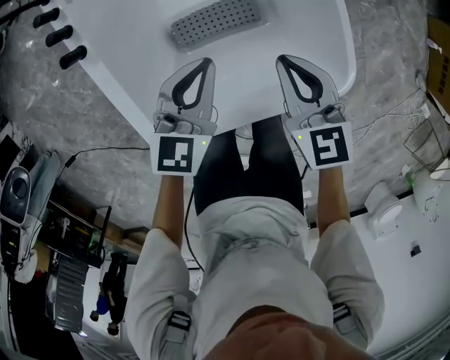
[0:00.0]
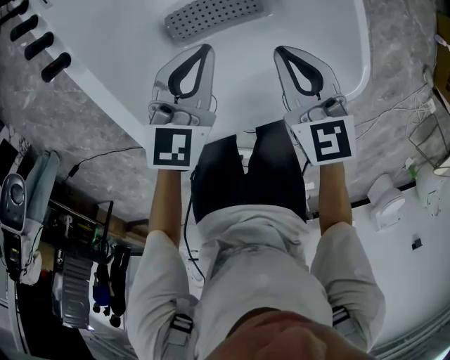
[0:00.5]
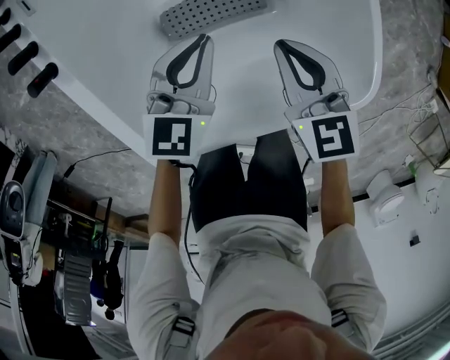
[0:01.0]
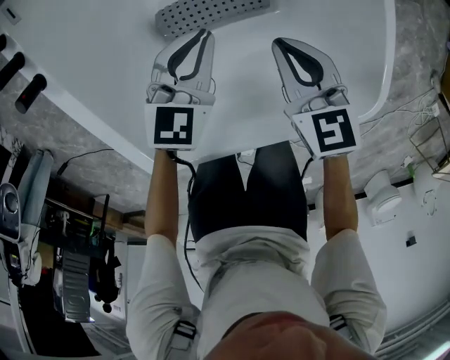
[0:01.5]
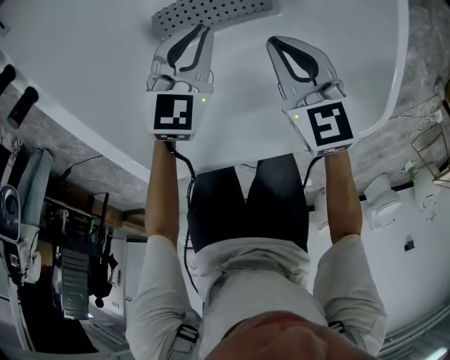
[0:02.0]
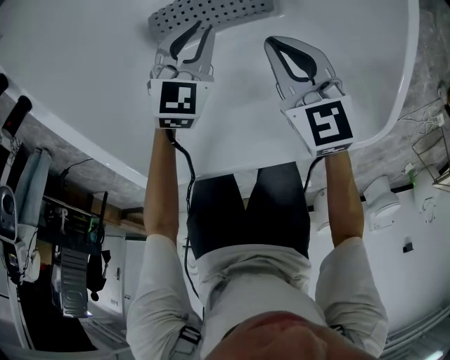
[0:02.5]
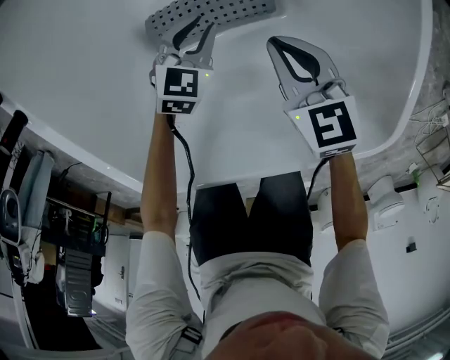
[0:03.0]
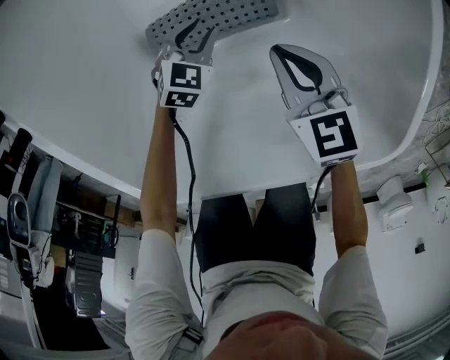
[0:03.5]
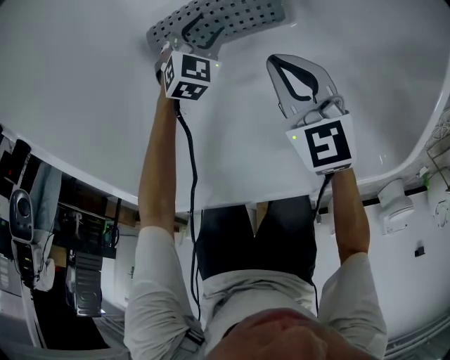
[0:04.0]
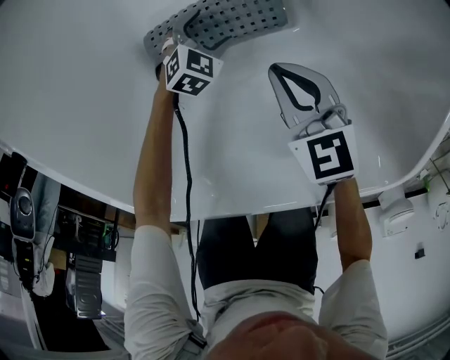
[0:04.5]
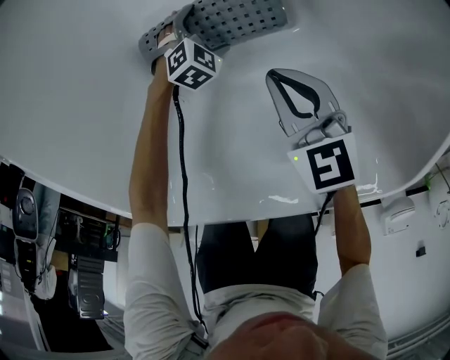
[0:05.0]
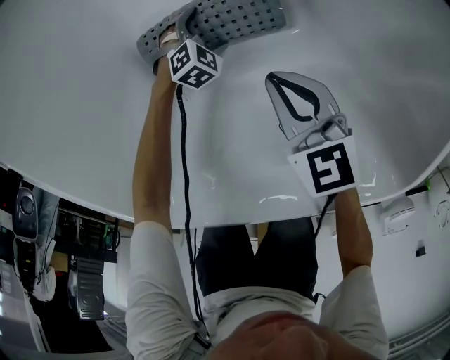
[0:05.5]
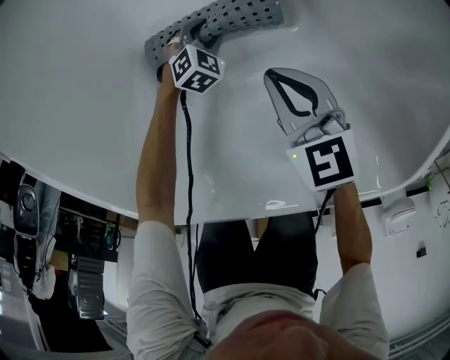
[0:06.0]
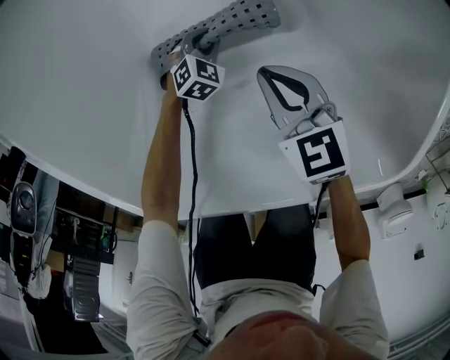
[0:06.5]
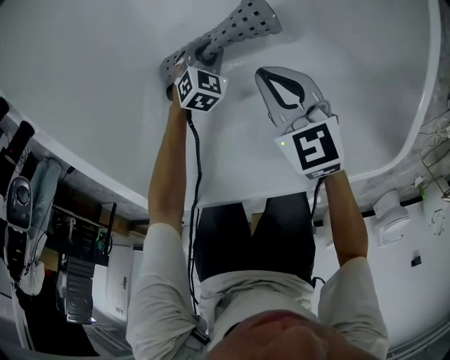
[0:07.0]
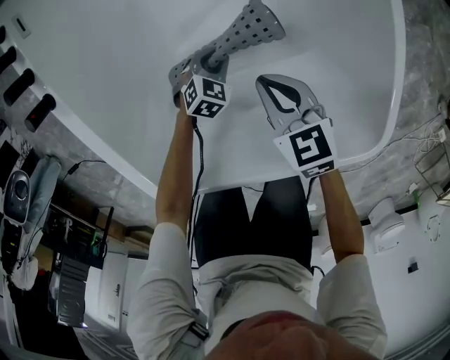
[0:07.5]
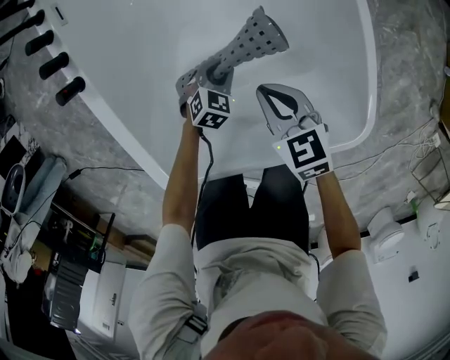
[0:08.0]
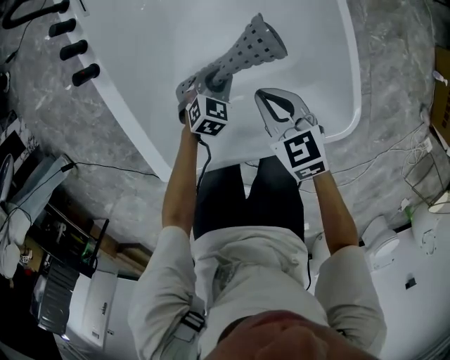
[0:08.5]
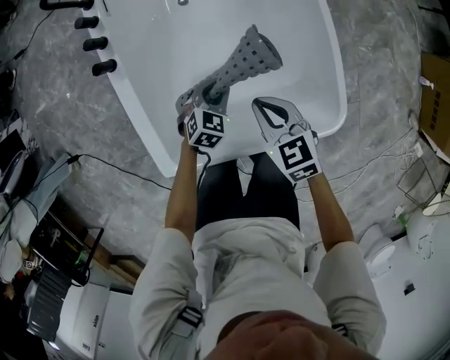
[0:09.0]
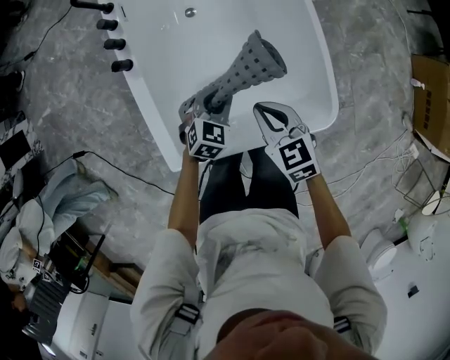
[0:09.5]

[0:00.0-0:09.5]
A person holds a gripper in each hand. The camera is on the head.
0:00.0 to 0:02.0: The two grippers go approximately 25 cm downward.
0:02.0 to 0:04.0: The right gripper heads downward, covering roughly 10 cm; the left gripper is displaced downward by some 25 cm, and turns by about 20 degrees.
0:04.0 to 0:05.5: The left gripper goes about 10 cm downward, and opens its fingers.
0:05.5 to 0:07.5: The right gripper heads upward, covering roughly 10 cm, while the left gripper shifts about 20 cm upward, turns by about 20 degrees, and closes its fingers.
0:07.5 to 0:09.5: Both grippers move upward, some 30 cm.

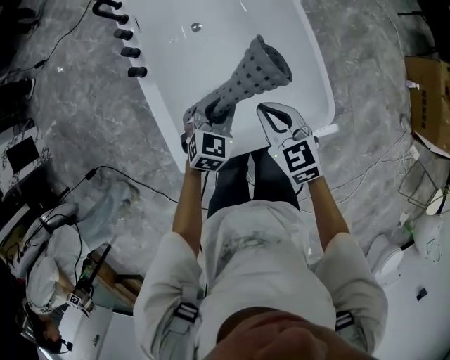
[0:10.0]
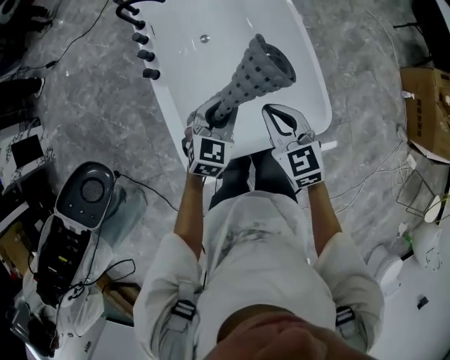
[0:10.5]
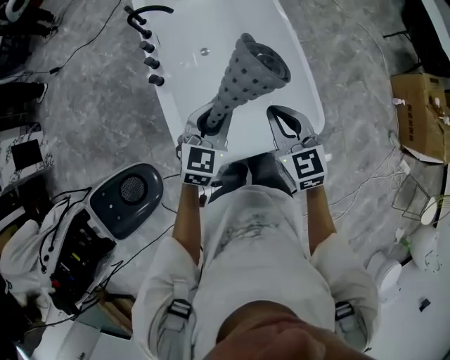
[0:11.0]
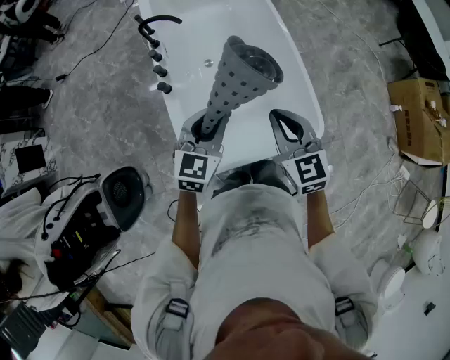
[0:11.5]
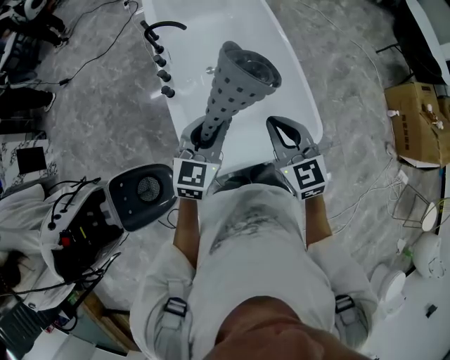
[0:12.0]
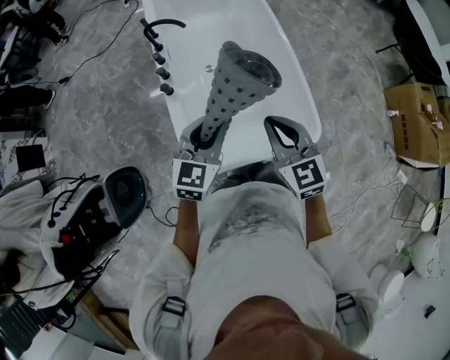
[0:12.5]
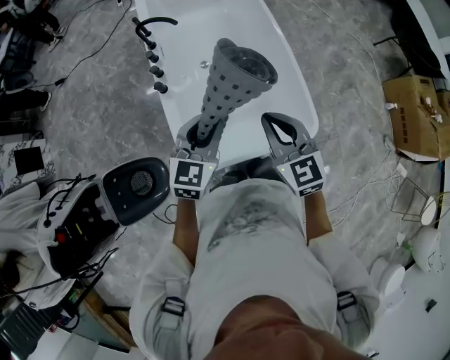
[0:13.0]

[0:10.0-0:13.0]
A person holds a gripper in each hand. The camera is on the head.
0:10.0 to 0:11.5: The two grippers go about 20 cm upward.
0:11.5 to 0:13.0: There are only small adjustments of the grippers.

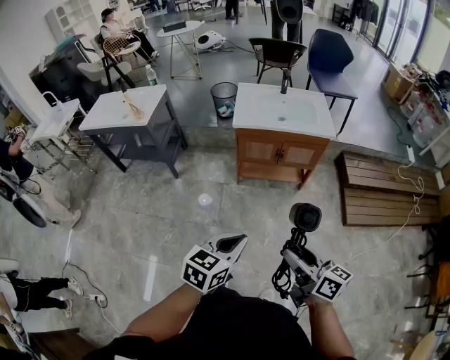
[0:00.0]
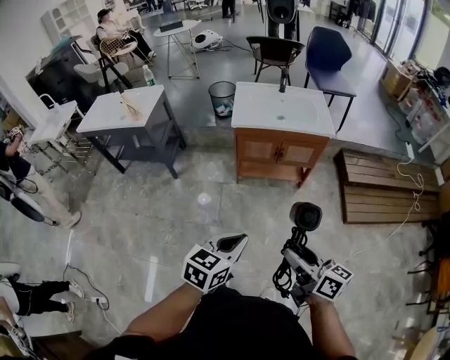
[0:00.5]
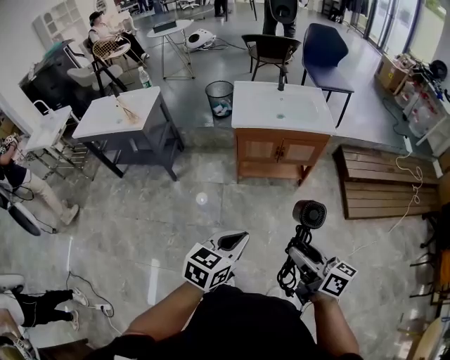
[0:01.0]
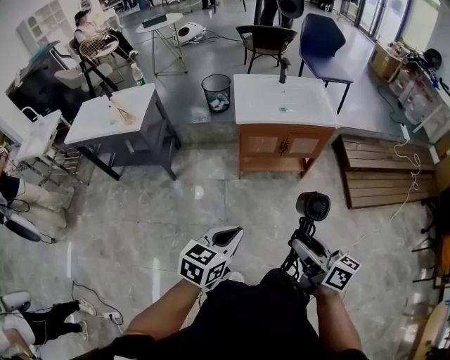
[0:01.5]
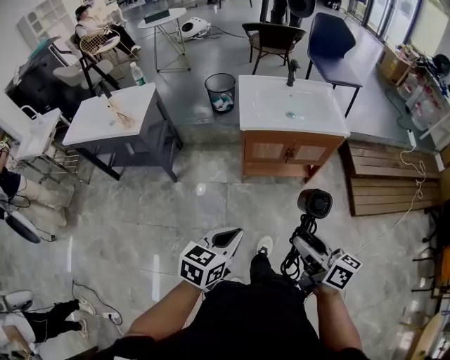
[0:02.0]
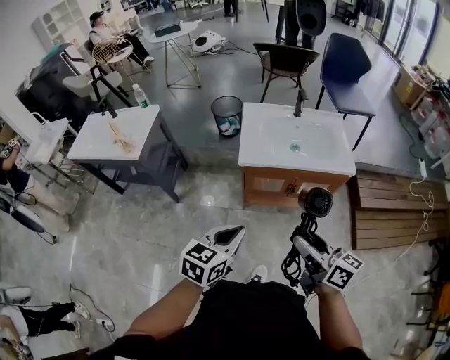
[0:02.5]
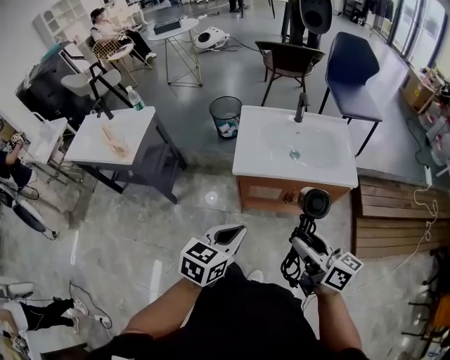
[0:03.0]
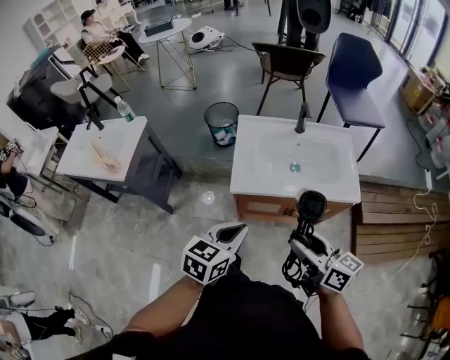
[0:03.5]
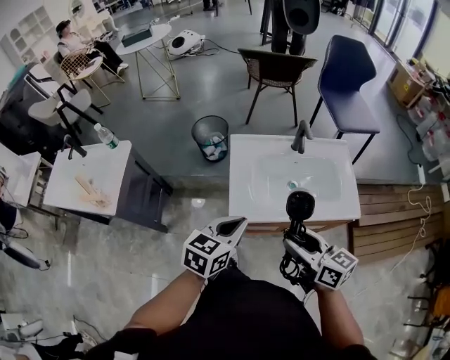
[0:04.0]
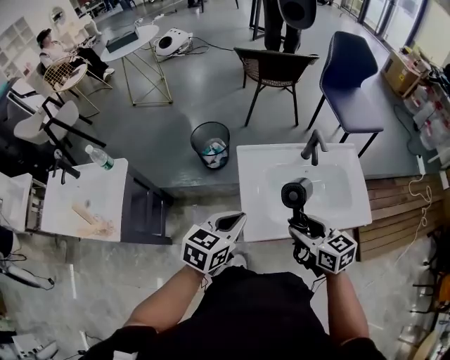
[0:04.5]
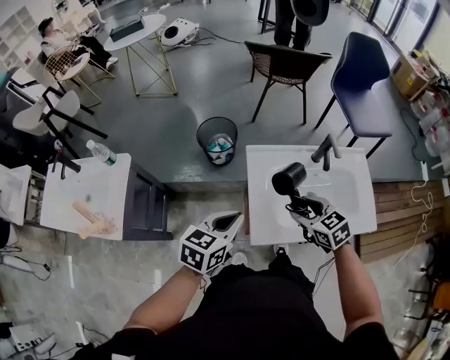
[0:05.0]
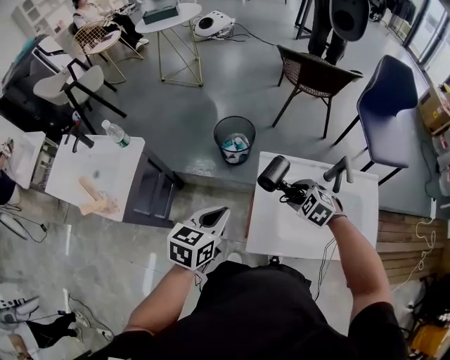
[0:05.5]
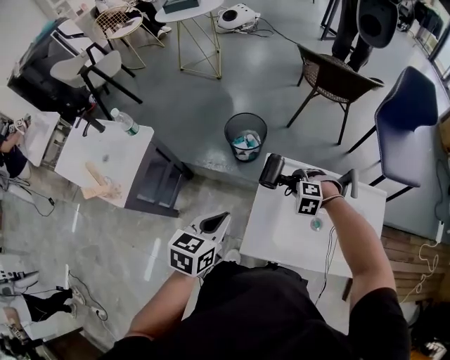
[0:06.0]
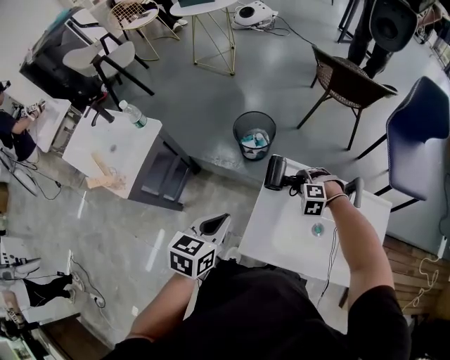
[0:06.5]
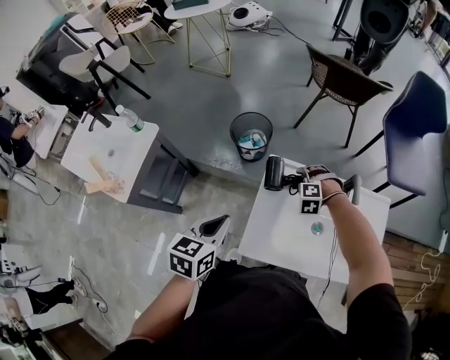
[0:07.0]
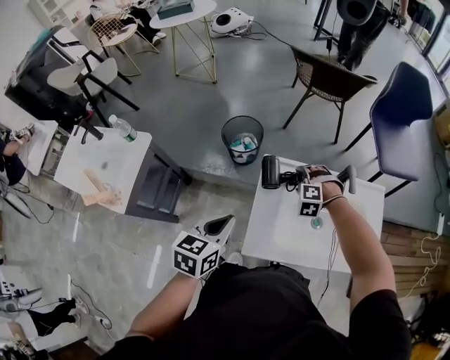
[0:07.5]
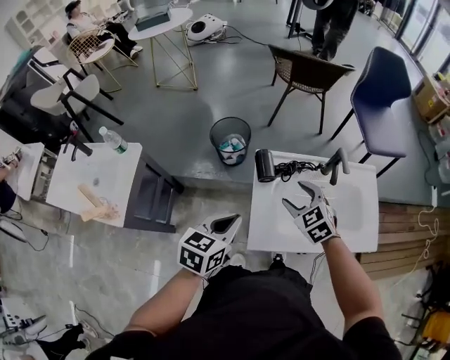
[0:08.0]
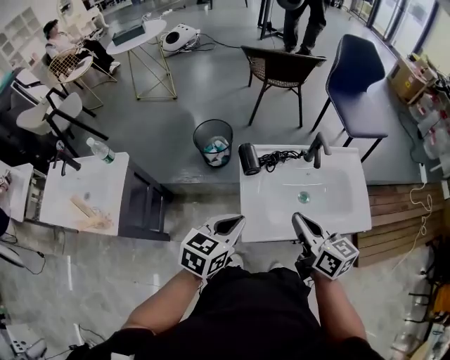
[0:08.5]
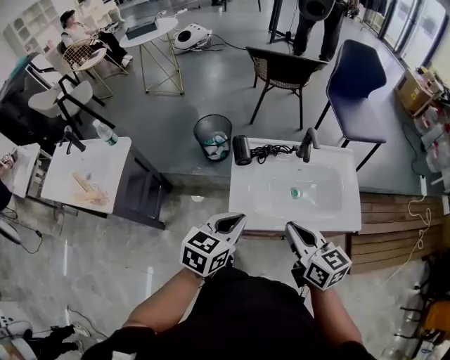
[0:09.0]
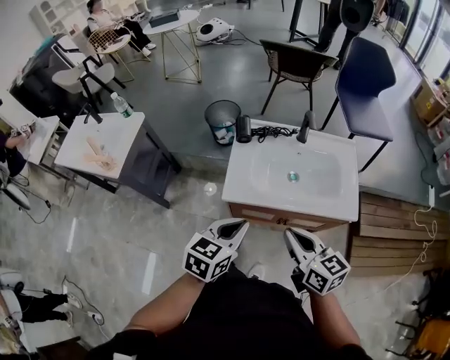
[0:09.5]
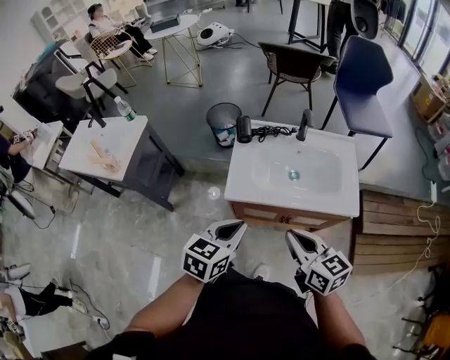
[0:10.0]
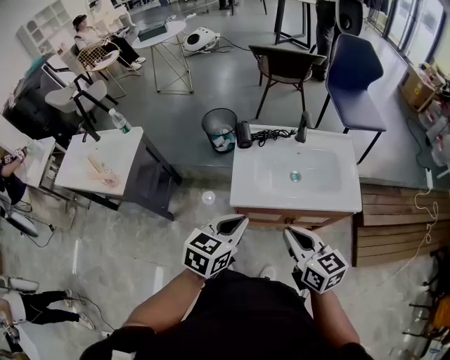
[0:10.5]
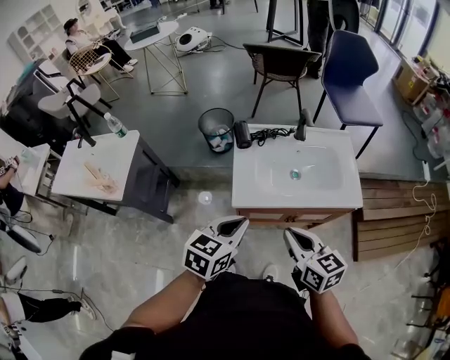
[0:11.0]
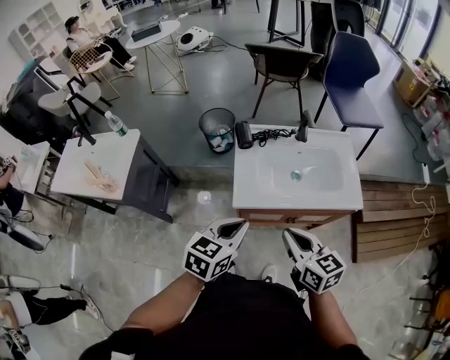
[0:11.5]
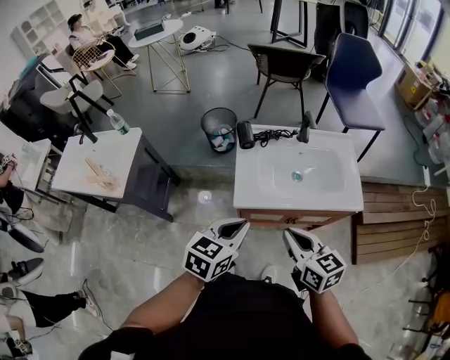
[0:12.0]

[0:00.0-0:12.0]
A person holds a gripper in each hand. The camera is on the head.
0:00.0 to 0:02.0: Both grippers move forward and to the left, some 15 cm.
0:02.0 to 0:04.0: The two grippers travel together, forward, some 40 cm.
0:04.0 to 0:06.0: The right gripper shifts approximately 40 cm forward and downward, and rolls counterclockwise, seen from behind, by roughly 80 degrees, while the left gripper is displaced forward and to the left by roughly 20 cm, and changes its angle by some 20 degrees.
0:06.0 to 0:08.0: The right gripper is displaced upward and backward by roughly 15 cm, and twists approximately 50 degrees clockwise, seen from behind.
0:08.0 to 0:10.0: Both grippers move backward and to the right, some 30 cm. The right gripper changes its angle by roughly 40 degrees, and closes up.
0:10.0 to 0:12.0: Both grippers move to the left, approximately 5 cm.

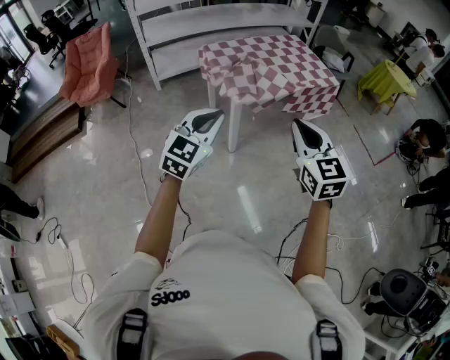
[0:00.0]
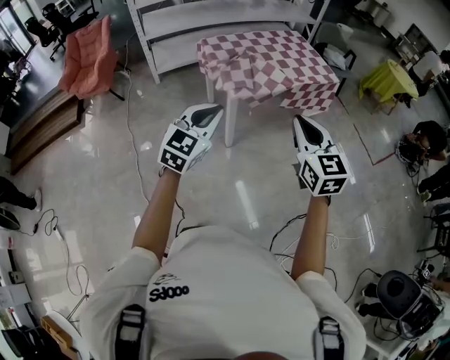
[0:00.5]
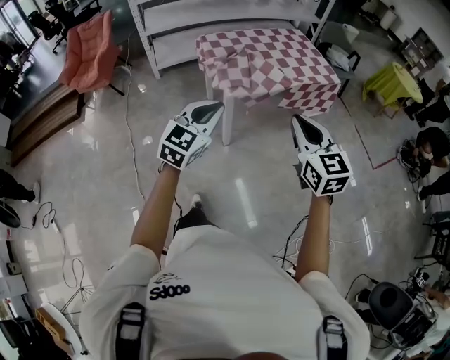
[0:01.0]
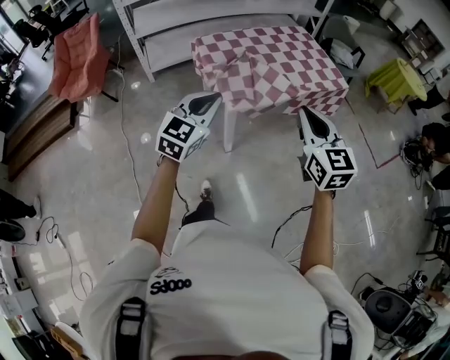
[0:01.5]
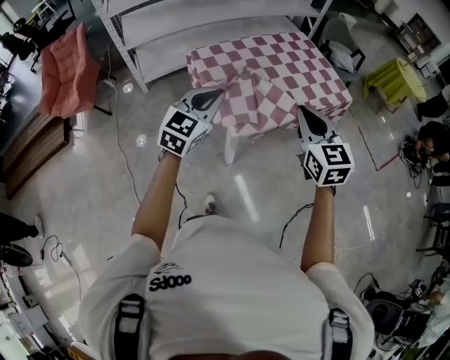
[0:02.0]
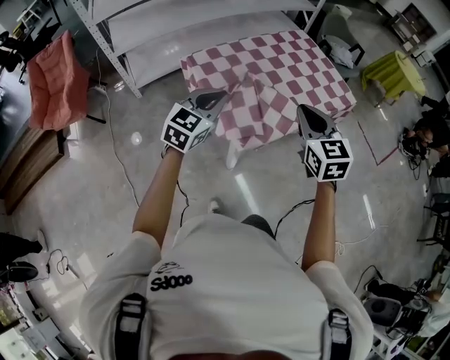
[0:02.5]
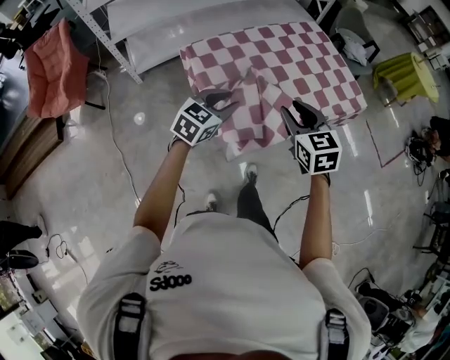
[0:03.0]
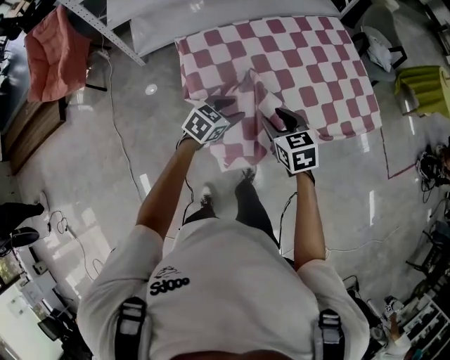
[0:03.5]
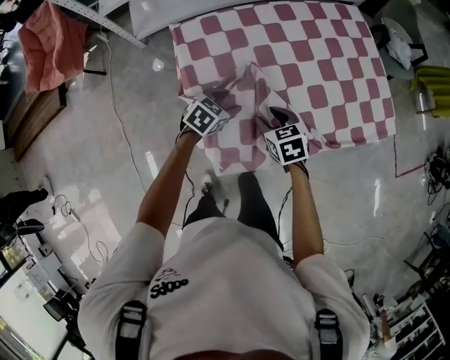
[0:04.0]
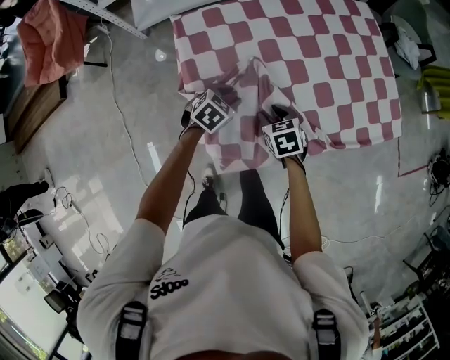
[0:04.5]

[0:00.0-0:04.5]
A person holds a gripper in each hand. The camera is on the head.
0:00.0 to 0:02.0: The grippers both shift forward by approximately 35 cm.
0:02.0 to 0:04.5: Both grippers travel together downward and forward, some 50 cm. The left gripper tilts its fingers roughly 50 degrees downward, and opens up, while the right gripper tips its fingers downward by about 40 degrees, and opens its fingers.
